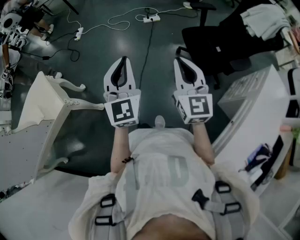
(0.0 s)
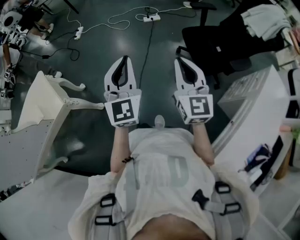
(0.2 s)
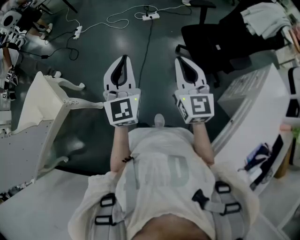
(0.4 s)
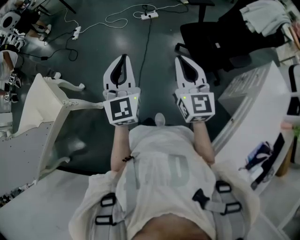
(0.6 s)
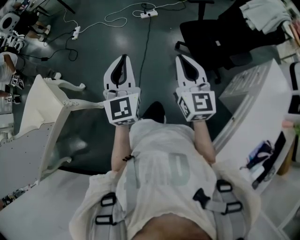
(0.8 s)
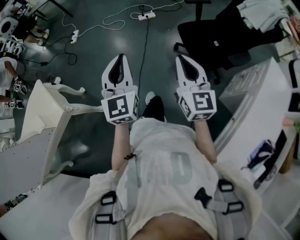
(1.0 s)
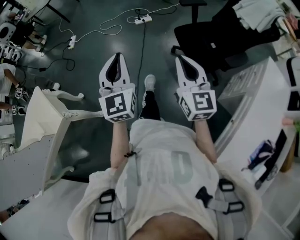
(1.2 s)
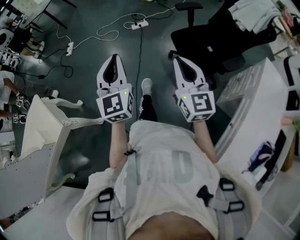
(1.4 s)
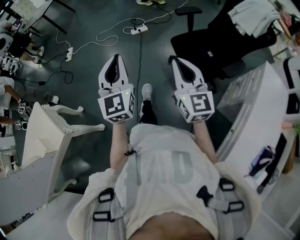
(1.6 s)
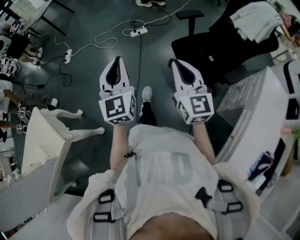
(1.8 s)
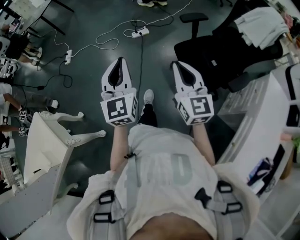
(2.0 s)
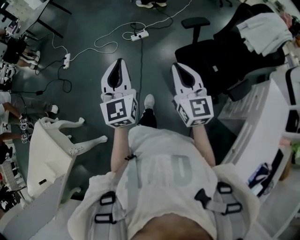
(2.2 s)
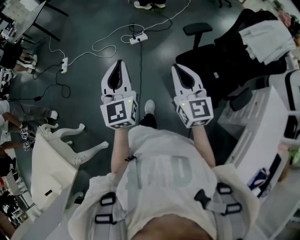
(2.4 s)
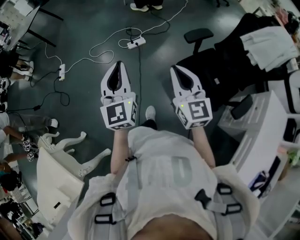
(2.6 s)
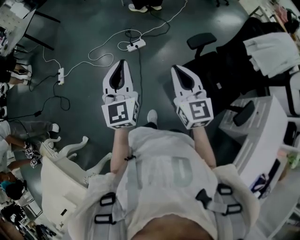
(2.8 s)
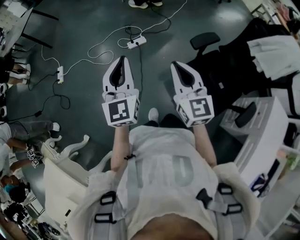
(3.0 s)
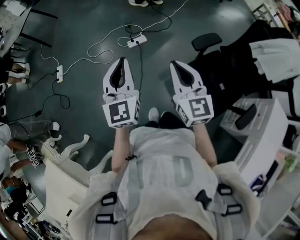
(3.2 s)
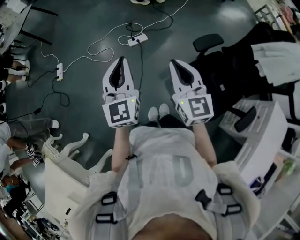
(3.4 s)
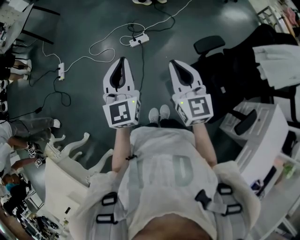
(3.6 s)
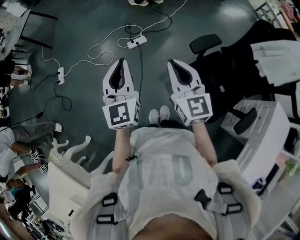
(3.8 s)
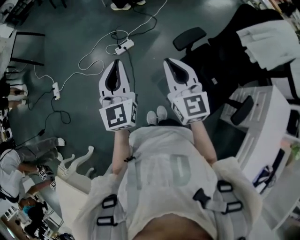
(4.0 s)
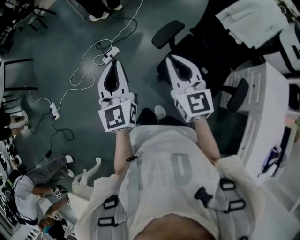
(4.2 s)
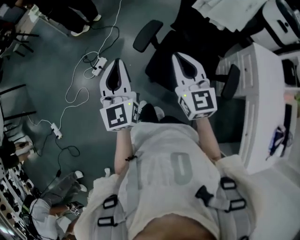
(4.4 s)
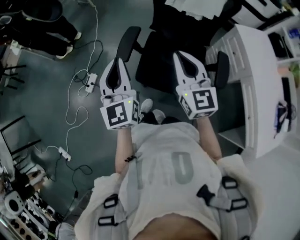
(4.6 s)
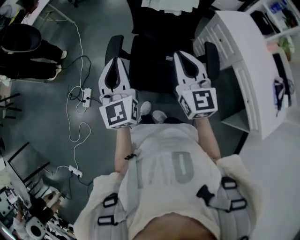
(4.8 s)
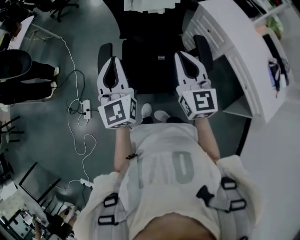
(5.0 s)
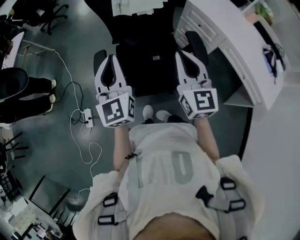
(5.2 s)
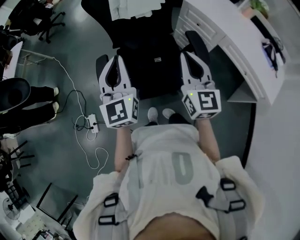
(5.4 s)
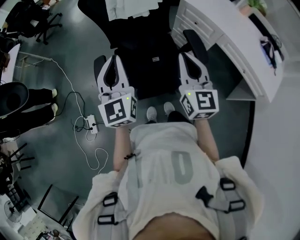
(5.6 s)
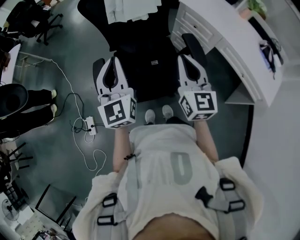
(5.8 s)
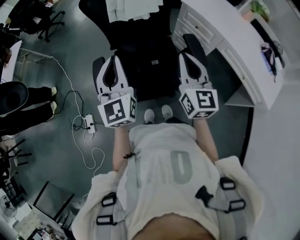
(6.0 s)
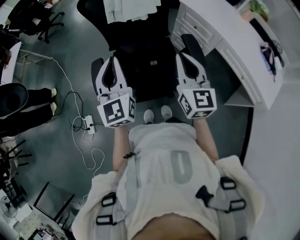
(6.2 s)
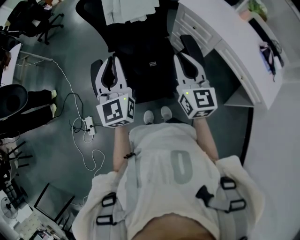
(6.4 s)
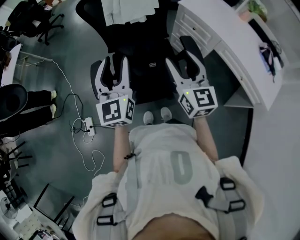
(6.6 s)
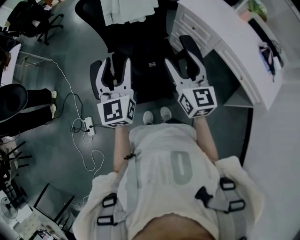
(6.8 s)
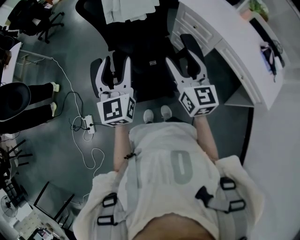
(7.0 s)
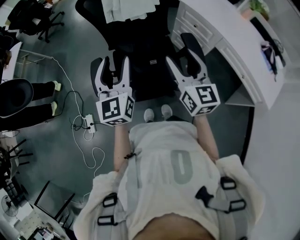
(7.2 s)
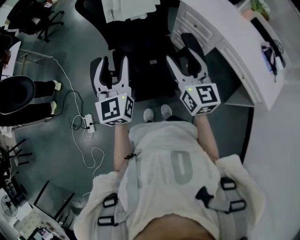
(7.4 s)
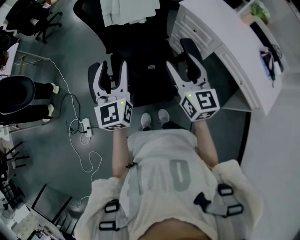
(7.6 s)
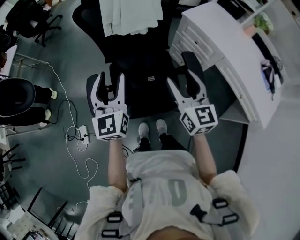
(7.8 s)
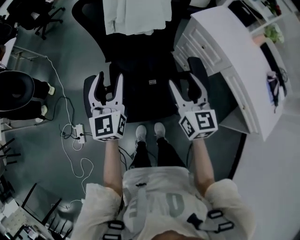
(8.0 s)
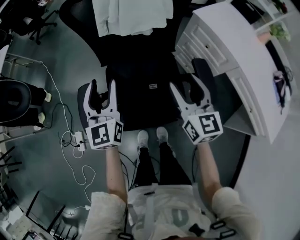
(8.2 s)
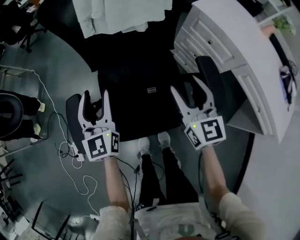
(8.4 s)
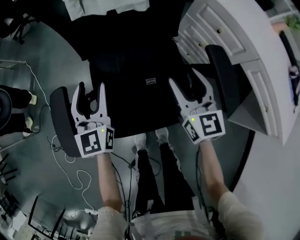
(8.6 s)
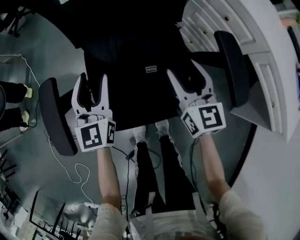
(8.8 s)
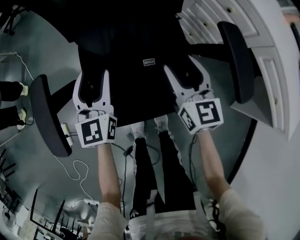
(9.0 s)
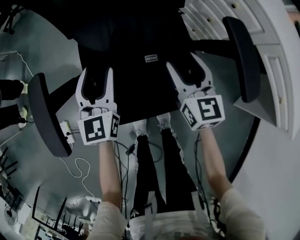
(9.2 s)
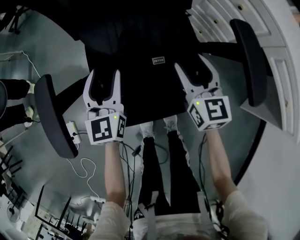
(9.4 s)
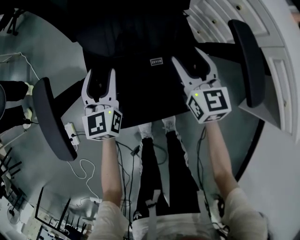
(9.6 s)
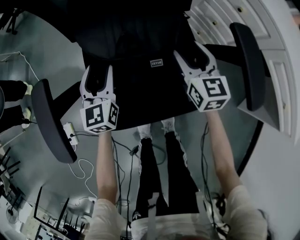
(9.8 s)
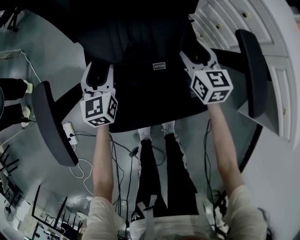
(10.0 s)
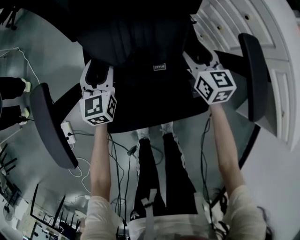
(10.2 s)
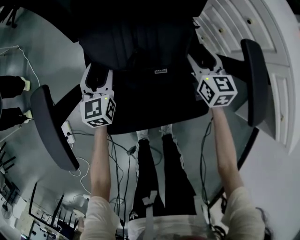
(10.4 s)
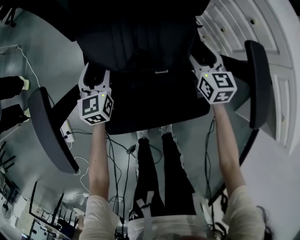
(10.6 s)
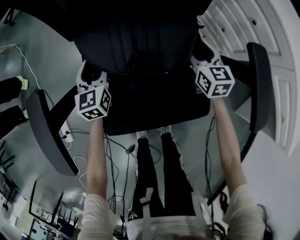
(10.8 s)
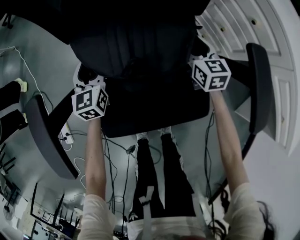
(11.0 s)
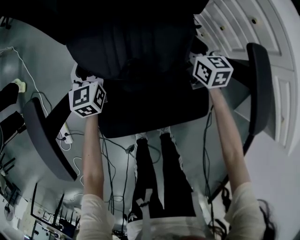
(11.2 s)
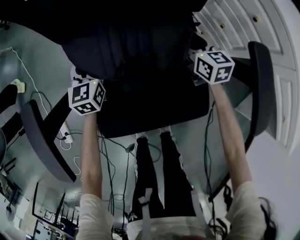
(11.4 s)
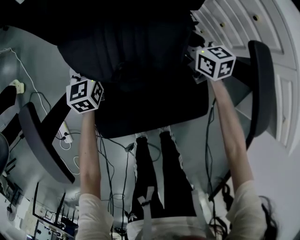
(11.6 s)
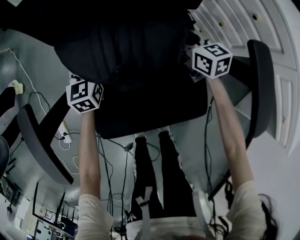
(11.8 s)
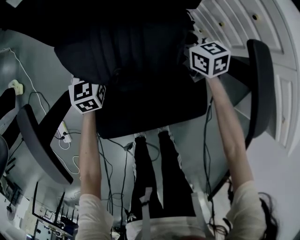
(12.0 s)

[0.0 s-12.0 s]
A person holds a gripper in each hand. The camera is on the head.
0.0 to 1.6 s: The left gripper travels forward by roughly 15 cm, while the right gripper moves forward and to the right, approximately 10 cm.
1.6 to 3.0 s: The two grippers travel together, forward, about 40 cm.
3.0 to 4.4 s: The left gripper shifts by roughly 25 cm, and swivels roughly 30 degrees. Meanwhile the right gripper changes place by some 25 cm, and rotates approximately 30 degrees.
4.4 to 6.0 s: The right gripper changes place by approximately 20 cm, and turns by approximately 50 degrees, while the left gripper moves approximately 25 cm, and rotates roughly 40 degrees.
6.0 to 7.6 s: The left gripper opens up. Meanwhile the right gripper opens.
7.6 to 9.0 s: Both grippers move downward, about 40 cm.
9.0 to 10.4 s: The left gripper travels downward and forward by roughly 15 cm. The right gripper travels downward, forward and to the right by some 15 cm.
10.4 to 12.0 s: The right gripper travels downward and forward by roughly 10 cm, changes its angle by about 20 degrees, and closes its fingers, while the left gripper goes about 5 cm forward, and closes its fingers.

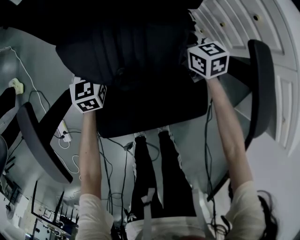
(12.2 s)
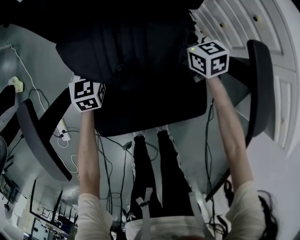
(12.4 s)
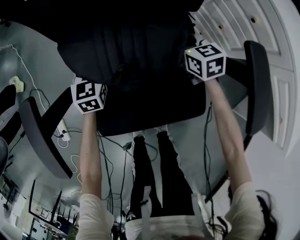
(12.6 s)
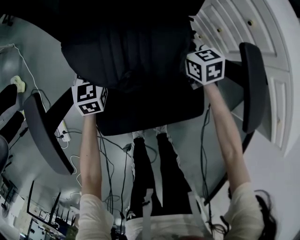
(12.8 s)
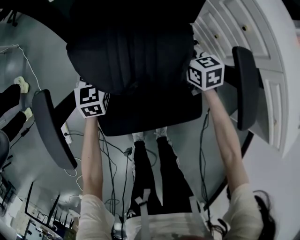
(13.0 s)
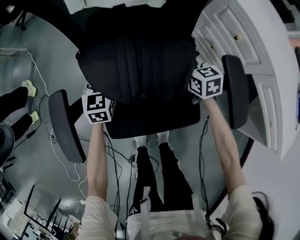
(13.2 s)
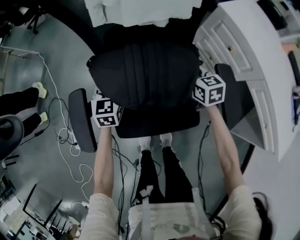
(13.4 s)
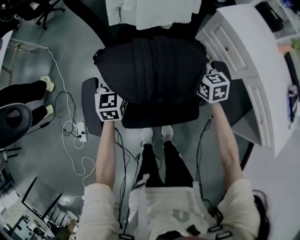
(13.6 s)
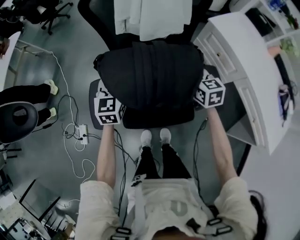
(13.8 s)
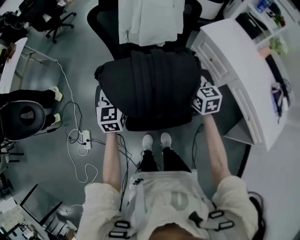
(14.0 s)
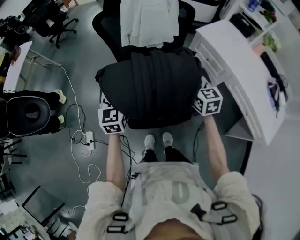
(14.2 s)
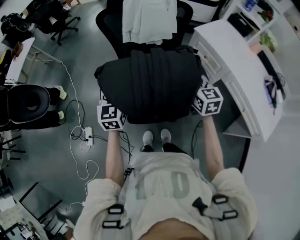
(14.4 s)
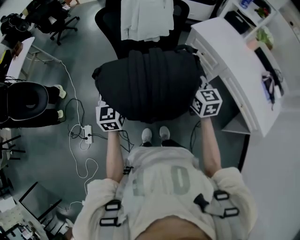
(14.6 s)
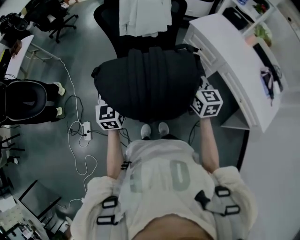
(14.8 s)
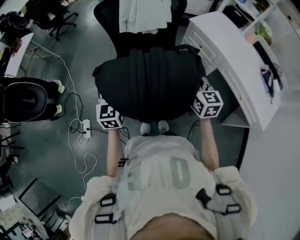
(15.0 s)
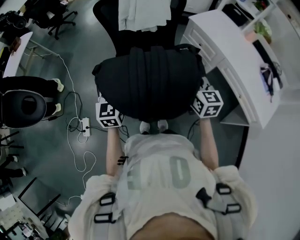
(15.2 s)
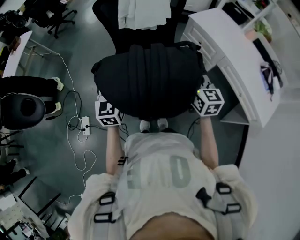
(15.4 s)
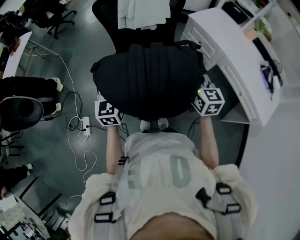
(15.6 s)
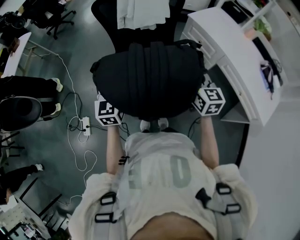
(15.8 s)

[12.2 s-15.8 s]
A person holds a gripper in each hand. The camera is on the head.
12.2 to 14.0 s: The grippers both shift upward by about 40 cm.
14.0 to 15.8 s: Both grippers move backward and upward, about 20 cm.

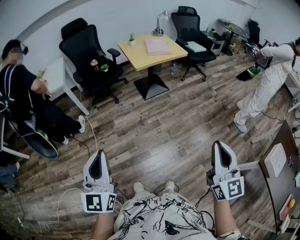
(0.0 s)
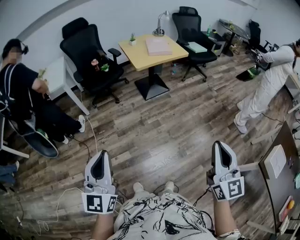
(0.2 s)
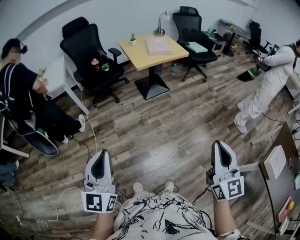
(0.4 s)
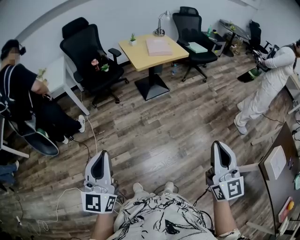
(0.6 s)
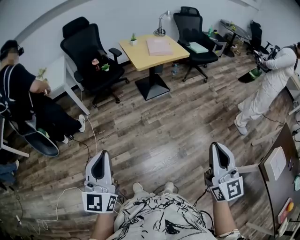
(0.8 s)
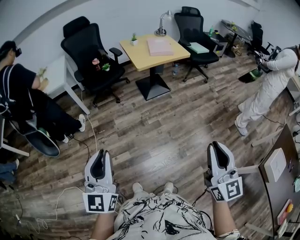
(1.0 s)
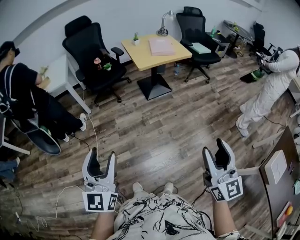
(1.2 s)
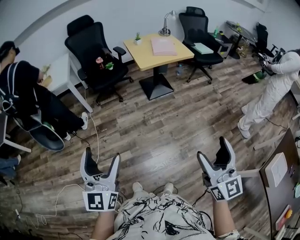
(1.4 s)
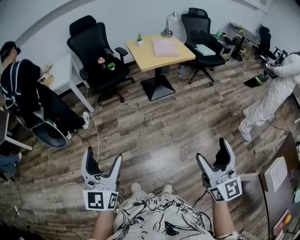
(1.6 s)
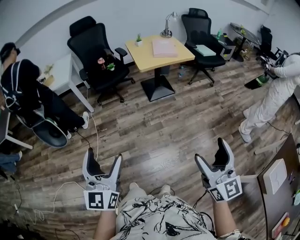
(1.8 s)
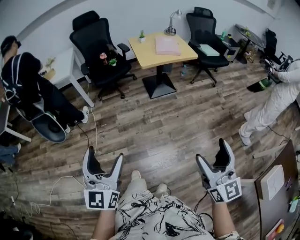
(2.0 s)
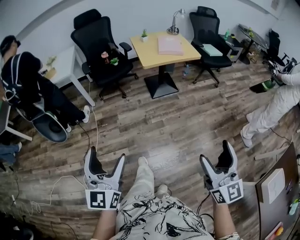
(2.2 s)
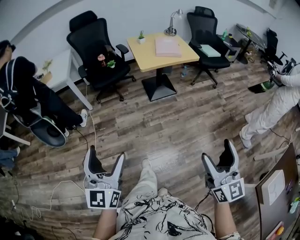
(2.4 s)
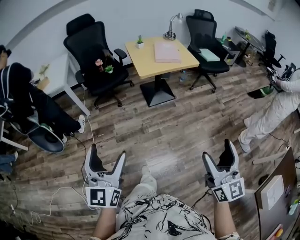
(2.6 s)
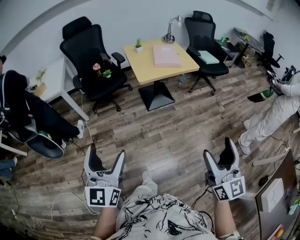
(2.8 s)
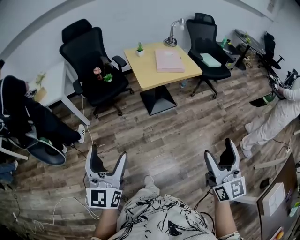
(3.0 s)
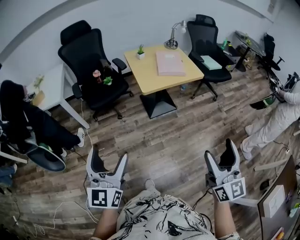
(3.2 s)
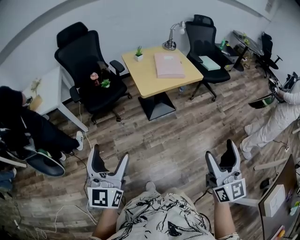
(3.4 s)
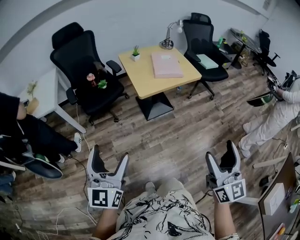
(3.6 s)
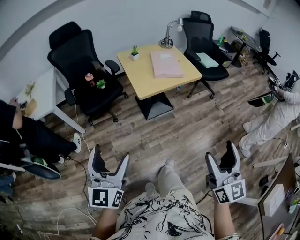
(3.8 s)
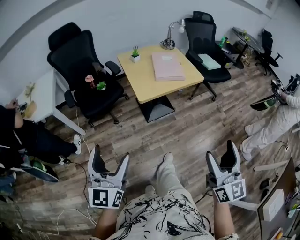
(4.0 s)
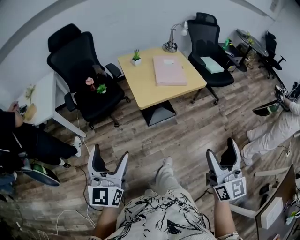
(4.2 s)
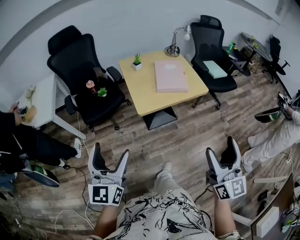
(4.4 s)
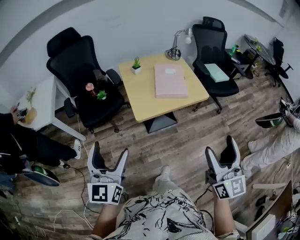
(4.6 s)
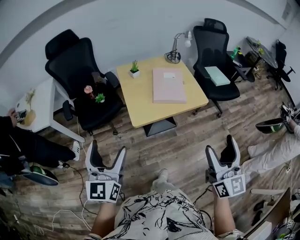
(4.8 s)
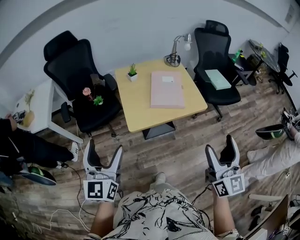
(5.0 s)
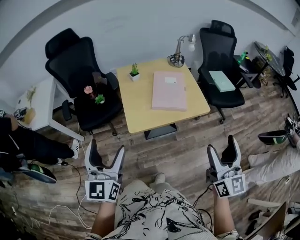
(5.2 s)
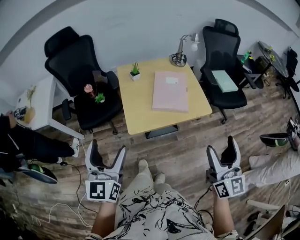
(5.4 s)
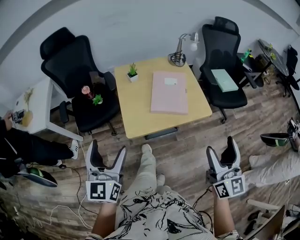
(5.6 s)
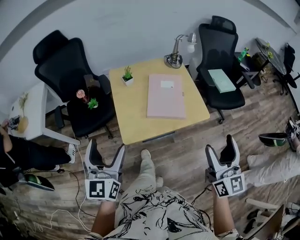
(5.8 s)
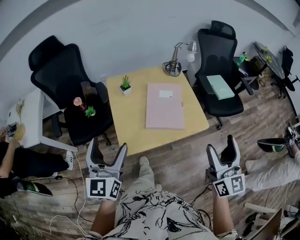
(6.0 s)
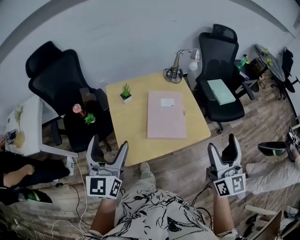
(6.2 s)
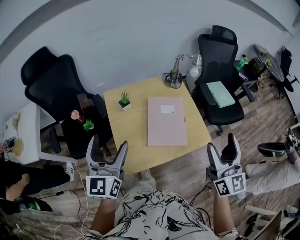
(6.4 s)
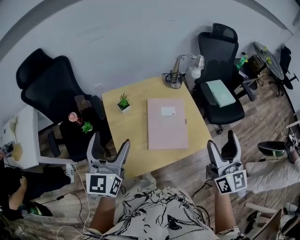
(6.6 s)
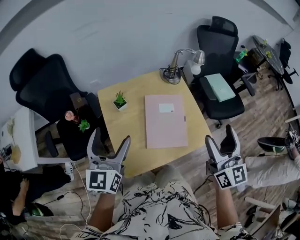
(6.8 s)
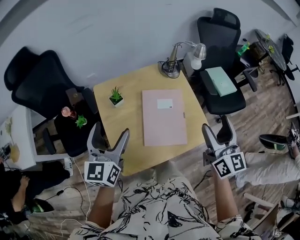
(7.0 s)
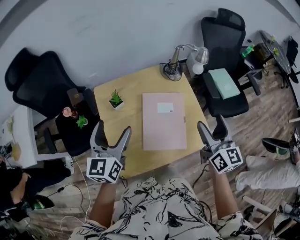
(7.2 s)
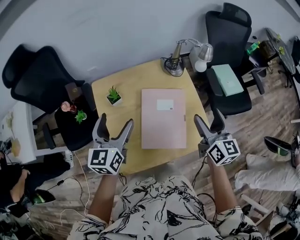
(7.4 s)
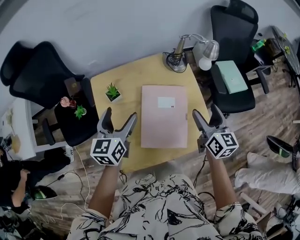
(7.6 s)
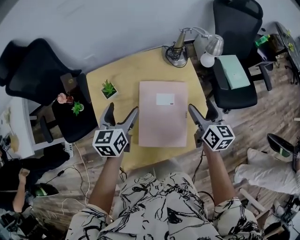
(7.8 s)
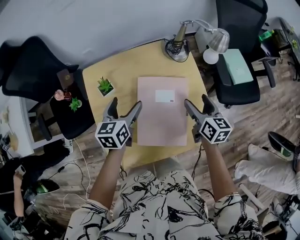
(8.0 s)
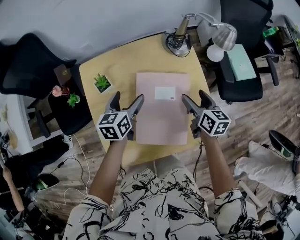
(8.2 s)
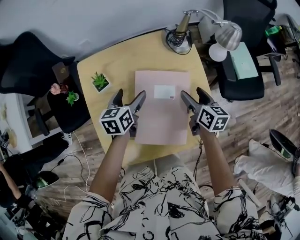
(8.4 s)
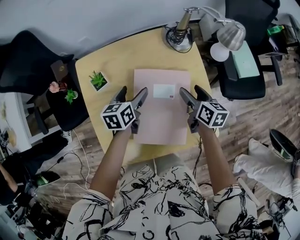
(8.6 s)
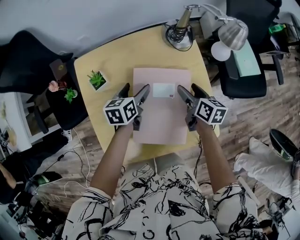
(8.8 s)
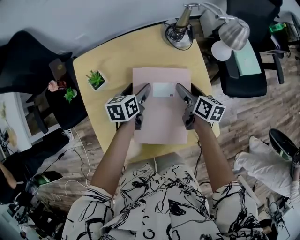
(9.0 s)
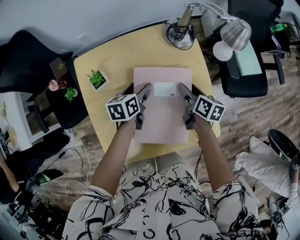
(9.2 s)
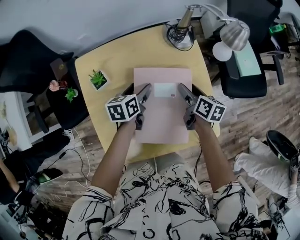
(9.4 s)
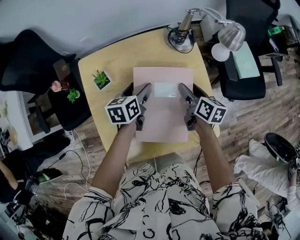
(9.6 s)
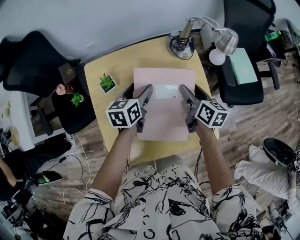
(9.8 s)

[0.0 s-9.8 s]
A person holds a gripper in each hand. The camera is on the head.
0.0 to 1.4 s: The left gripper opens its fingers. The right gripper opens up.
1.4 to 2.8 s: Both grippers move forward, roughly 20 cm.
2.8 to 4.2 s: Both grippers move forward, some 25 cm.
4.2 to 5.6 s: The two grippers go roughly 30 cm forward and to the right.
5.6 to 7.0 s: Both grippers move forward, approximately 35 cm.
7.0 to 8.4 s: Both grippers travel together downward and forward, approximately 30 cm. The left gripper turns by about 30 degrees, while the right gripper rotates some 40 degrees.
8.4 to 9.8 s: The right gripper shifts by roughly 5 cm. Meanwhile the left gripper changes place by approximately 5 cm.
